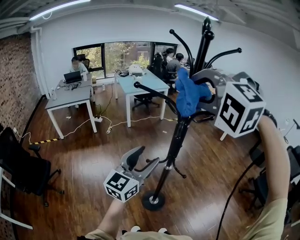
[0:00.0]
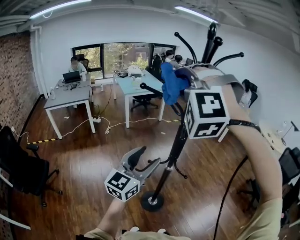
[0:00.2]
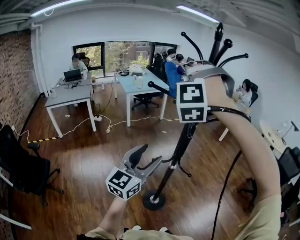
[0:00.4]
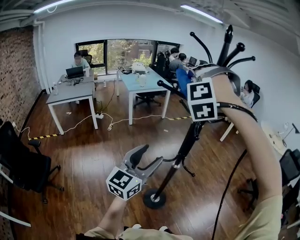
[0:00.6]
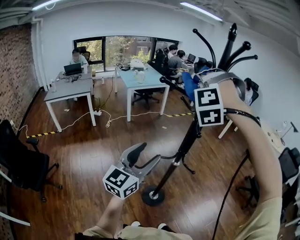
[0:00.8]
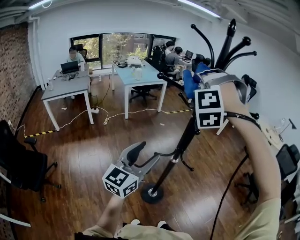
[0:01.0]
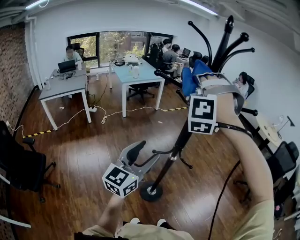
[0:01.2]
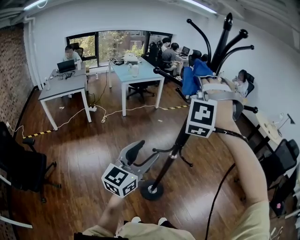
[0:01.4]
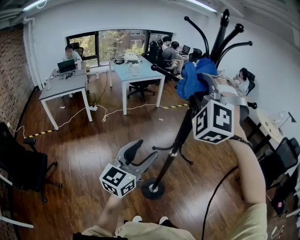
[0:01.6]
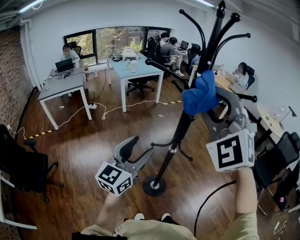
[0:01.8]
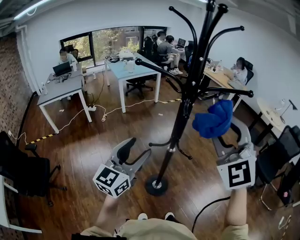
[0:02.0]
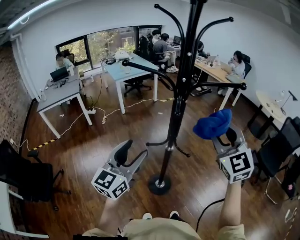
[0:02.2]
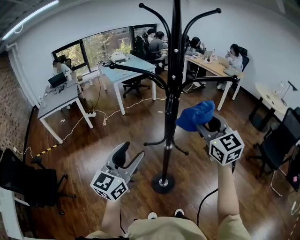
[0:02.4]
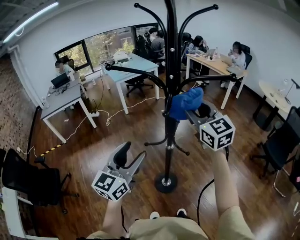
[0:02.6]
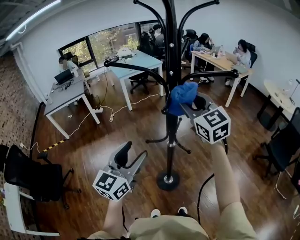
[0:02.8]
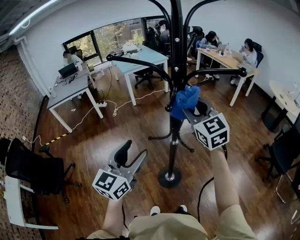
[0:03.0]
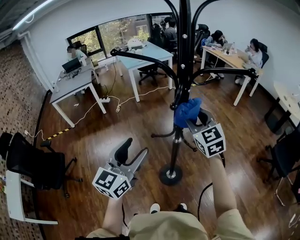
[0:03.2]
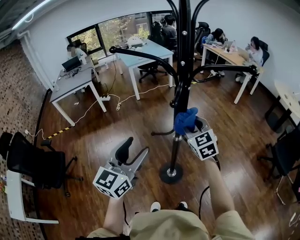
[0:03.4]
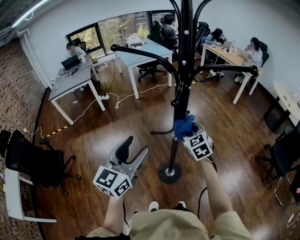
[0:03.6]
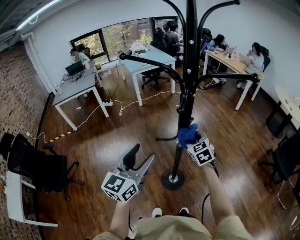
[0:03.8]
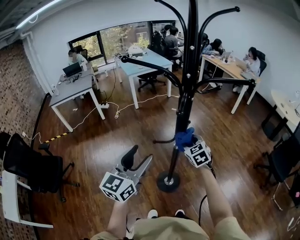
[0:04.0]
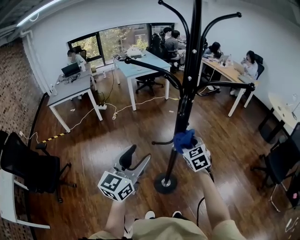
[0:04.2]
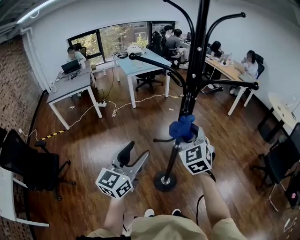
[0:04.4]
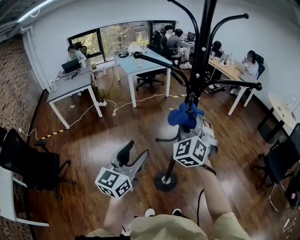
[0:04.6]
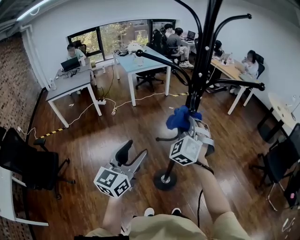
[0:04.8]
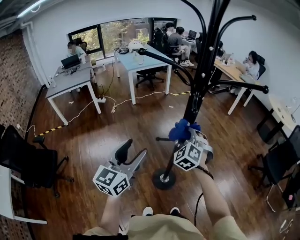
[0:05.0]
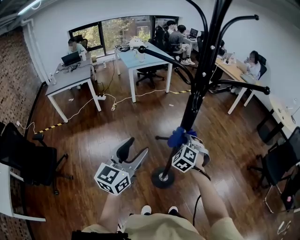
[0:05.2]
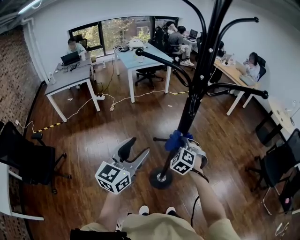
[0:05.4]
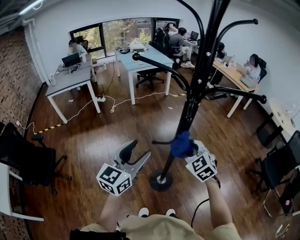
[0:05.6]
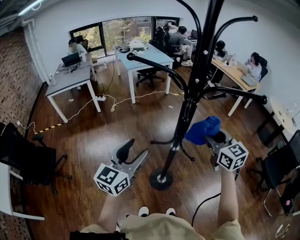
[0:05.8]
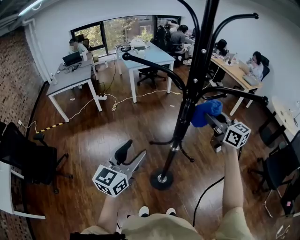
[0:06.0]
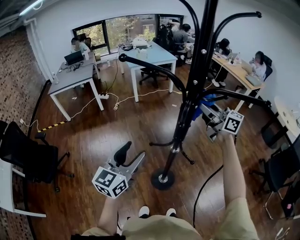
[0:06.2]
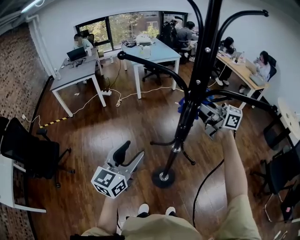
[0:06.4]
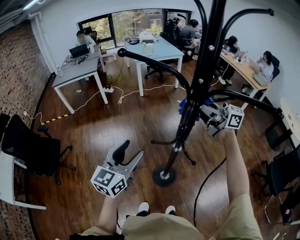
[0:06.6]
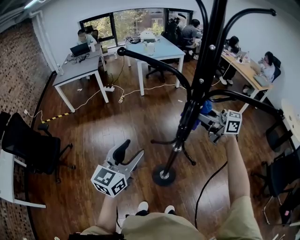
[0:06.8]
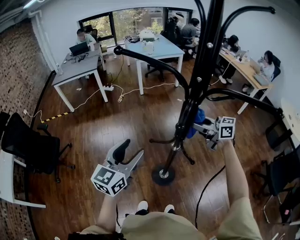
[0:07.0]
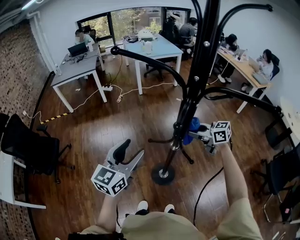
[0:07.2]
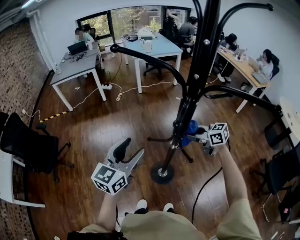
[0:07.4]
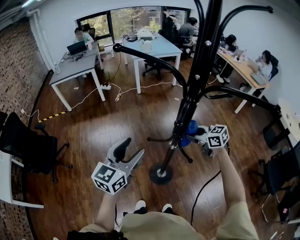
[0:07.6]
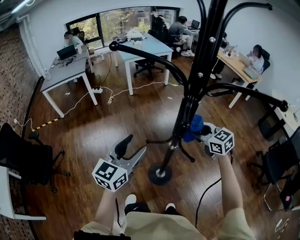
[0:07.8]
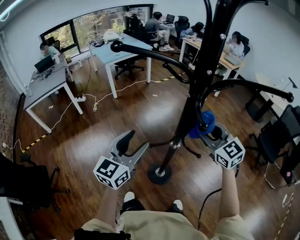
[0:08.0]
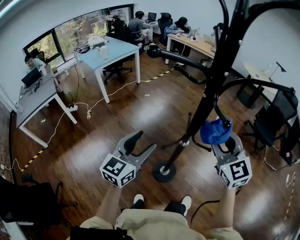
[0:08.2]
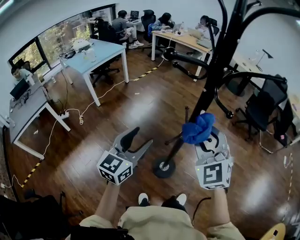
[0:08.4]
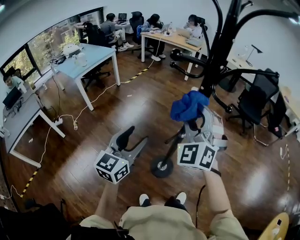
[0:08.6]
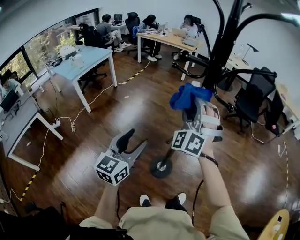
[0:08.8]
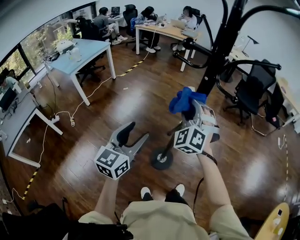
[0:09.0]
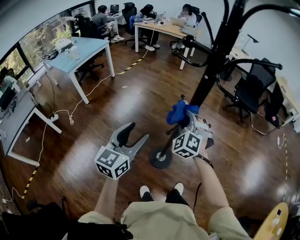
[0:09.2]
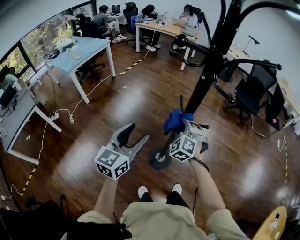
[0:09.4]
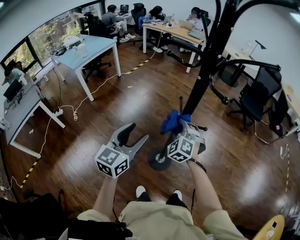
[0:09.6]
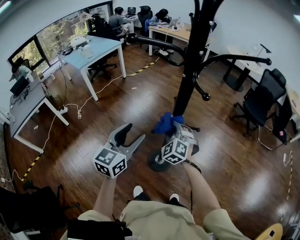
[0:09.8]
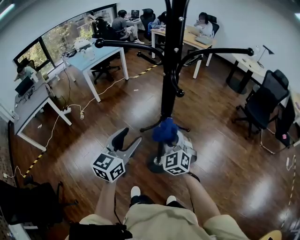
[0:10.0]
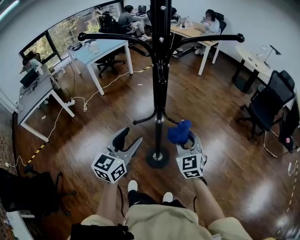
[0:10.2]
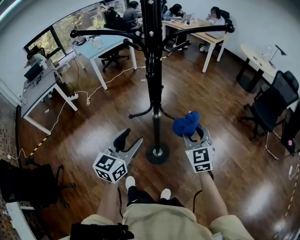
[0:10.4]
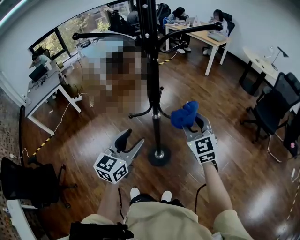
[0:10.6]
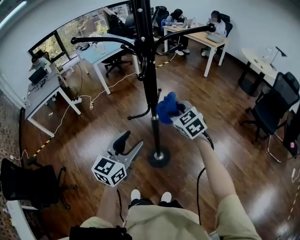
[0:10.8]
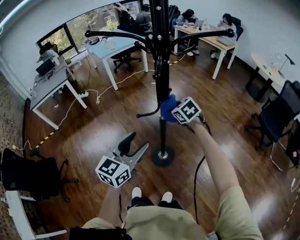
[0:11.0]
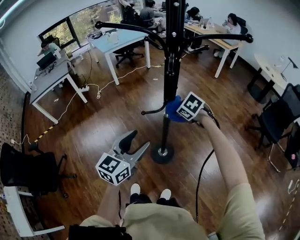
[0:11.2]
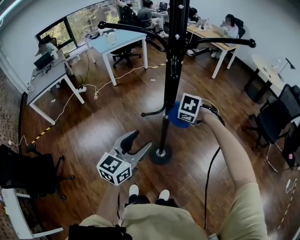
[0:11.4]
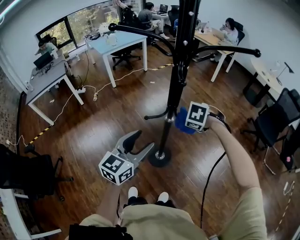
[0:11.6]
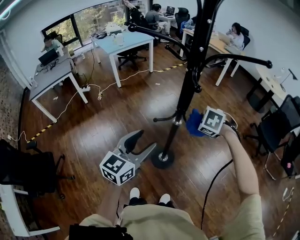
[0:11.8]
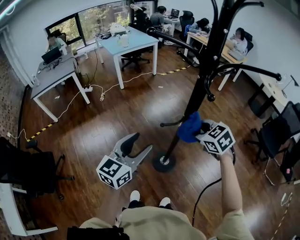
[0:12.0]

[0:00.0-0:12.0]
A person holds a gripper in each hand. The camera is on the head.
0:00.0 to 0:01.6: The right gripper goes forward and returns, roughly 10 cm each way, and changes its angle by roughly 30 degrees. The left gripper changes place by about 5 cm.
0:01.6 to 0:03.0: The right gripper travels downward and to the right by about 20 cm, and twists roughly 70 degrees clockwise, seen from behind.
0:03.0 to 0:04.4: The right gripper reaches approximately 25 cm downward, then returns, and turns by roughly 20 degrees.
0:04.4 to 0:06.0: The right gripper swings up and down, roughly 20 cm each way, with 2 reversals, and rotates around the line of its fingers by some 40 degrees, clockwise from behind.
0:06.0 to 0:07.6: The right gripper moves downward, roughly 20 cm, and turns by about 40 degrees.
0:07.6 to 0:09.0: The right gripper heads upward, covering some 15 cm, and turns by some 100 degrees. Meanwhile the left gripper shifts by roughly 15 cm, and changes its angle by some 40 degrees.
0:09.0 to 0:10.4: The right gripper ends up roughly 25 cm from where it was, and rotates approximately 50 degrees, while the left gripper shifts by approximately 20 cm, and rotates about 20 degrees.
0:10.4 to 0:12.0: The left gripper moves about 10 cm. The right gripper goes downward and returns, some 5 cm each way, and tilts its fingers approximately 30 degrees downward.

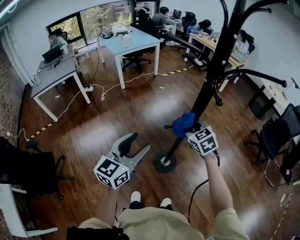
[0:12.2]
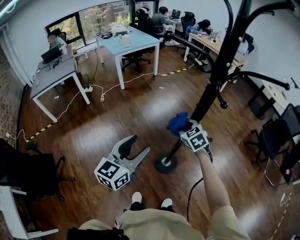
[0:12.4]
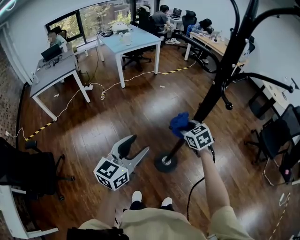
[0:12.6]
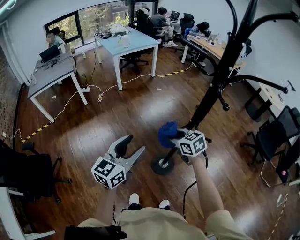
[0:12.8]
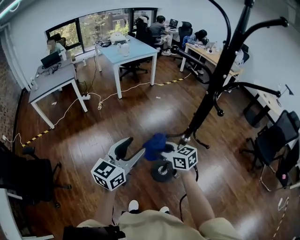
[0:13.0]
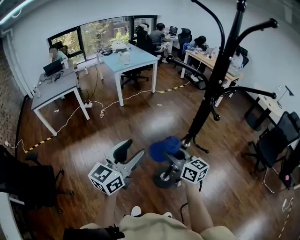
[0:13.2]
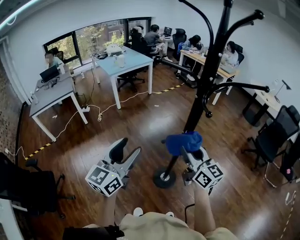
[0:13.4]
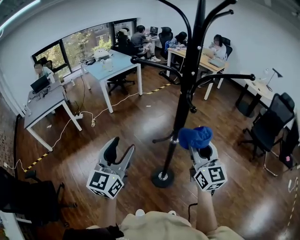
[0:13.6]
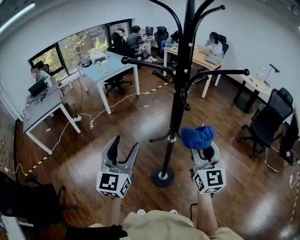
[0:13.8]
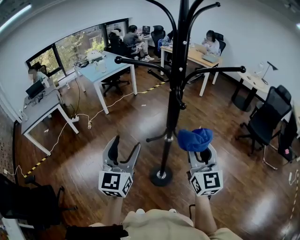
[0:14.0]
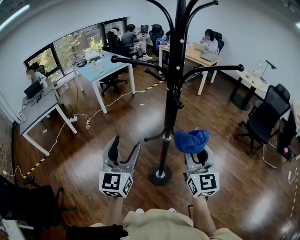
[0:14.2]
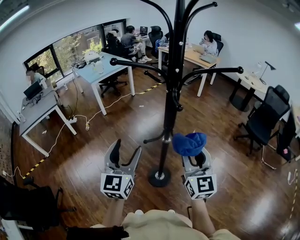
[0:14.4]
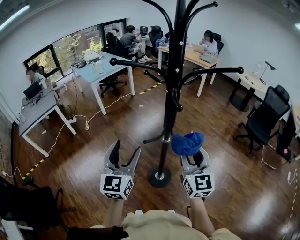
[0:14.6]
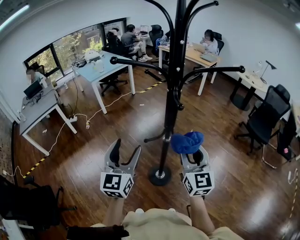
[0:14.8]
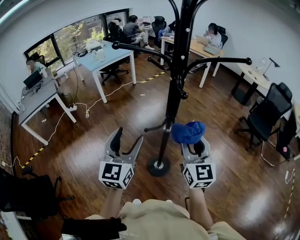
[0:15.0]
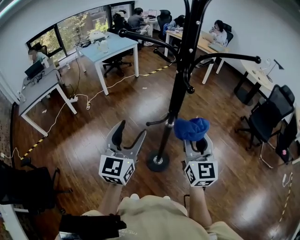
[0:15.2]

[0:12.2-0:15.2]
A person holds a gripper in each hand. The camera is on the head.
0:12.2 to 0:13.8: The left gripper is displaced upward by some 5 cm, and rotates approximately 20 degrees. The right gripper goes roughly 20 cm upward, backward and to the right, and tilts its fingers roughly 40 degrees upward.
0:13.8 to 0:15.2: The left gripper moves approximately 5 cm.

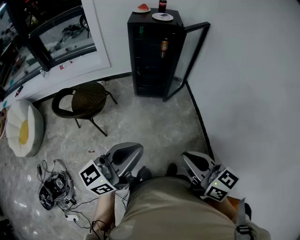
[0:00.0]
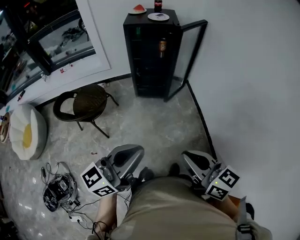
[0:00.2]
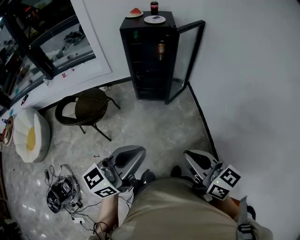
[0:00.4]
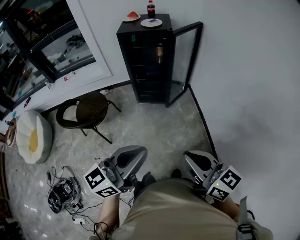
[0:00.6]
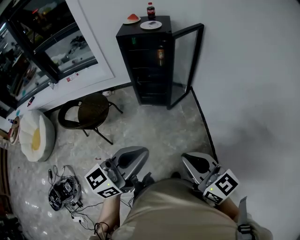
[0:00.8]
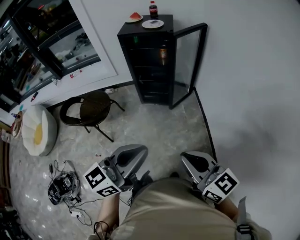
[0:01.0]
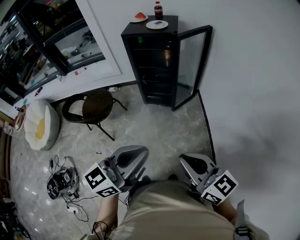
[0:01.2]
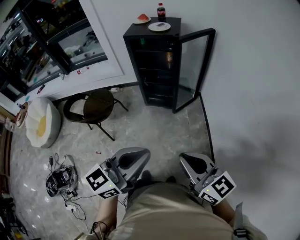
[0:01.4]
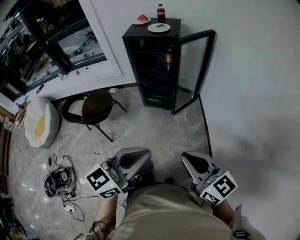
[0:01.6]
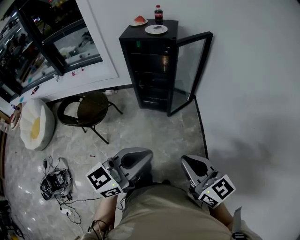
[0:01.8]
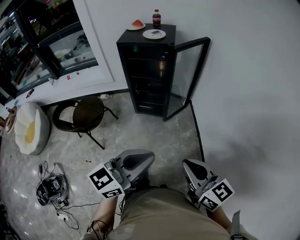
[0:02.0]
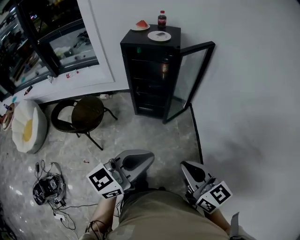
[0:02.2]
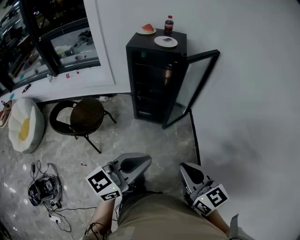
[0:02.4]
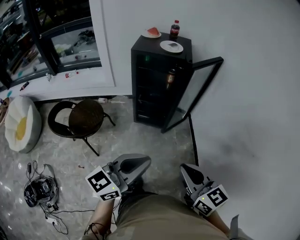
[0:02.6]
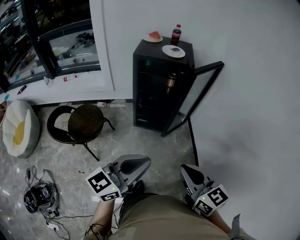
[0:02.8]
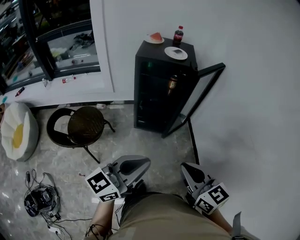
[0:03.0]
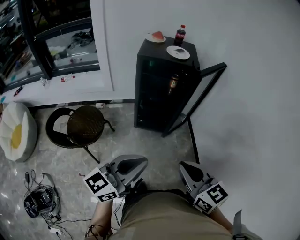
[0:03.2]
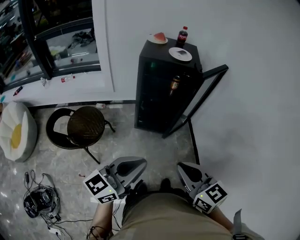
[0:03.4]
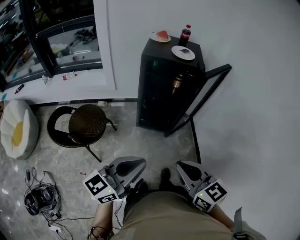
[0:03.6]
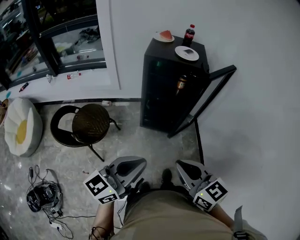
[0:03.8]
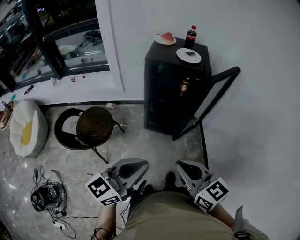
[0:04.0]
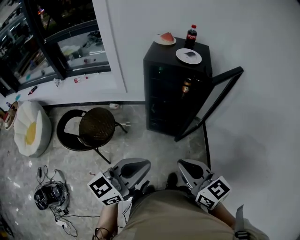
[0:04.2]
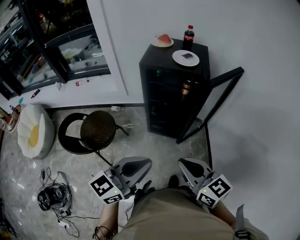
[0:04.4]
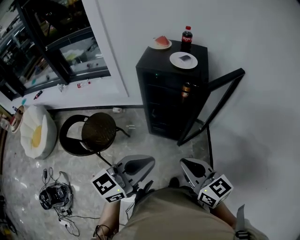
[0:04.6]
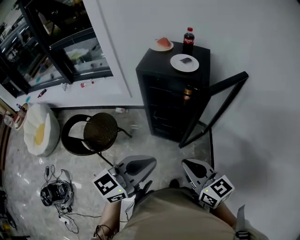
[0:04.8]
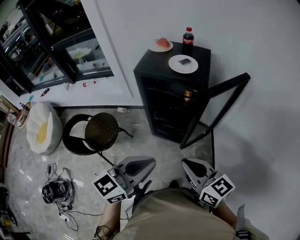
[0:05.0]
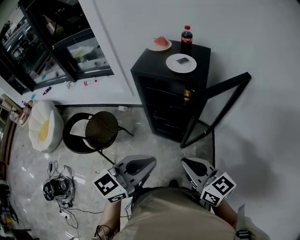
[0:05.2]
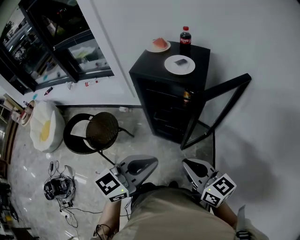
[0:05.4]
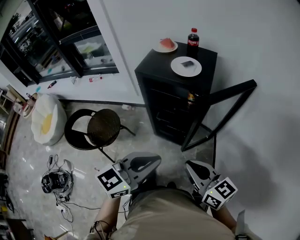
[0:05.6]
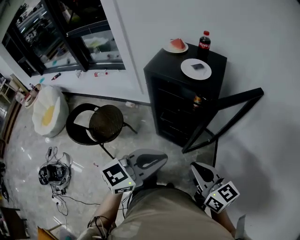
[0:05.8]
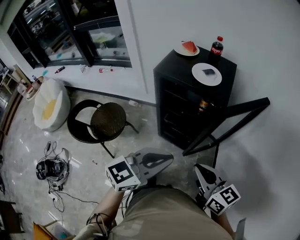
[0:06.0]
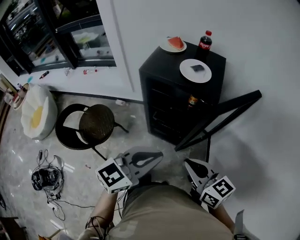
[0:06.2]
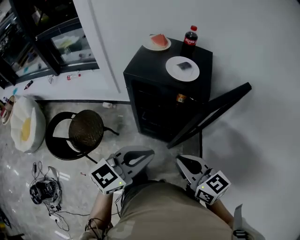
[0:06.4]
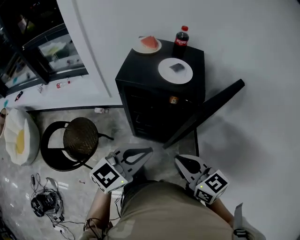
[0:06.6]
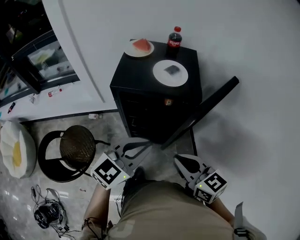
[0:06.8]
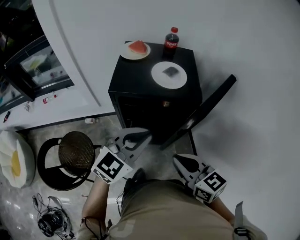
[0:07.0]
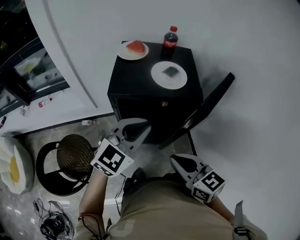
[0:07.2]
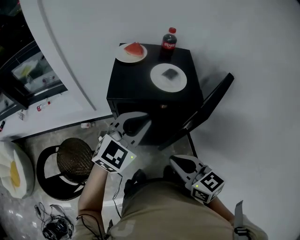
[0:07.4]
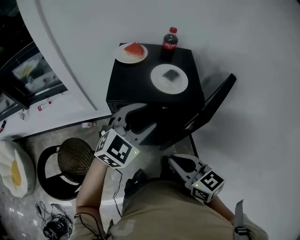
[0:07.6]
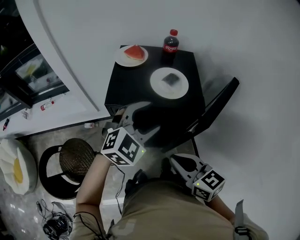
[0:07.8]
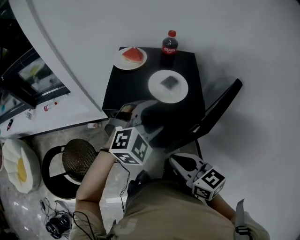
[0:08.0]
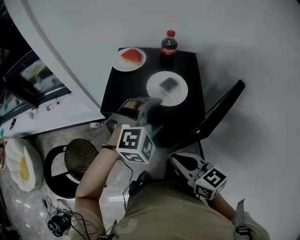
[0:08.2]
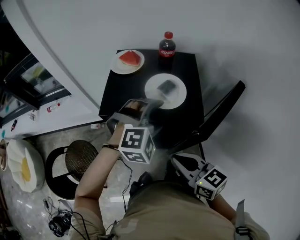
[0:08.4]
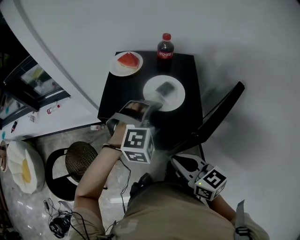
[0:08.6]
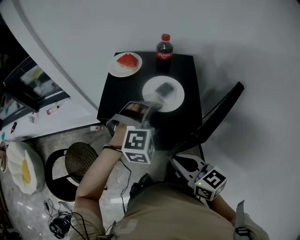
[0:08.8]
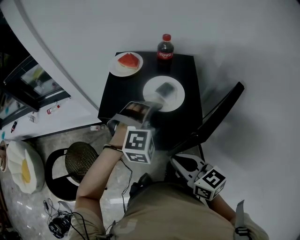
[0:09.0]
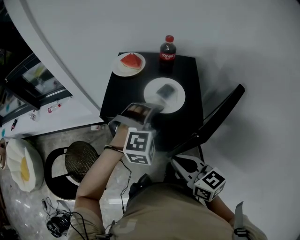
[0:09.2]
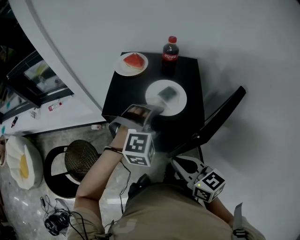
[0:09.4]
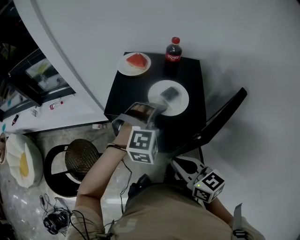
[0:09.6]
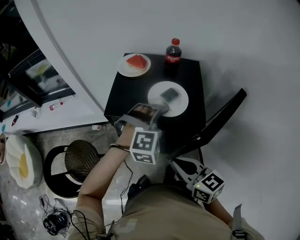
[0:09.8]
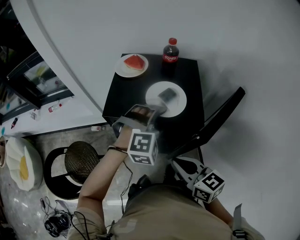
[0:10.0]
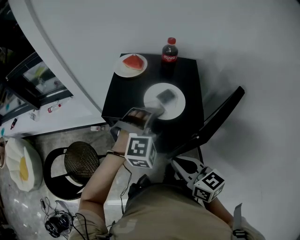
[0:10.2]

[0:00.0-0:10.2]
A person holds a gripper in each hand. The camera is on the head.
0:00.0 to 0:01.4: The left gripper is displaced to the right by some 20 cm. Meanwhile the right gripper heads to the right and forward, covering approximately 20 cm.
0:01.4 to 0:03.0: Both grippers move to the left and forward, some 20 cm.
0:03.0 to 0:04.4: Both grippers move forward, some 10 cm.
0:04.4 to 0:05.8: The grippers both shift to the right and forward by some 15 cm.
0:05.8 to 0:07.2: The left gripper shifts about 20 cm forward and to the left, and turns by some 30 degrees; the right gripper travels to the left and forward by roughly 15 cm, and swivels some 20 degrees.
0:07.2 to 0:08.8: The left gripper shifts about 15 cm forward, to the right and downward, angles its fingers downward, by approximately 30 degrees, and opens its fingers, while the right gripper heads forward, covering roughly 10 cm.
0:08.8 to 0:10.2: The grippers make only small movements.
